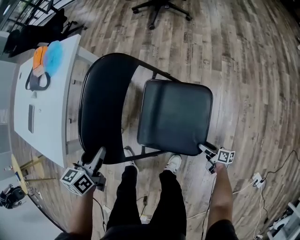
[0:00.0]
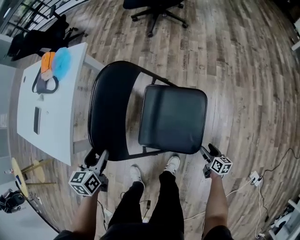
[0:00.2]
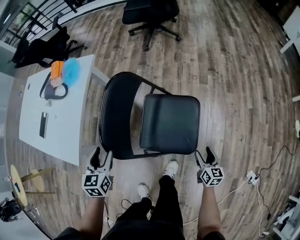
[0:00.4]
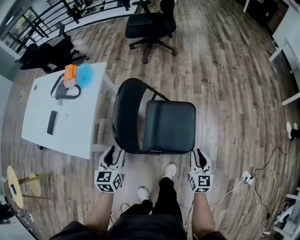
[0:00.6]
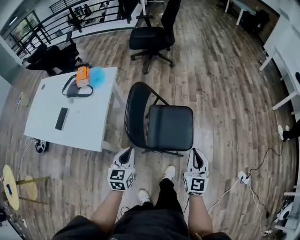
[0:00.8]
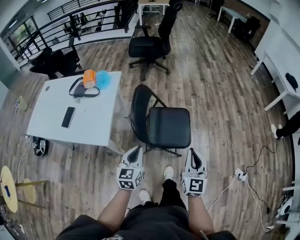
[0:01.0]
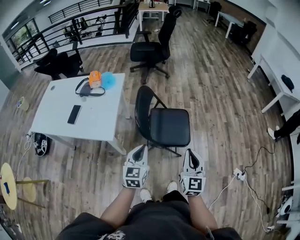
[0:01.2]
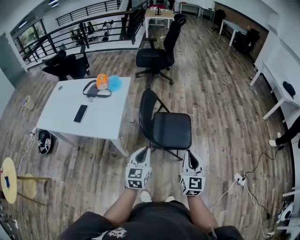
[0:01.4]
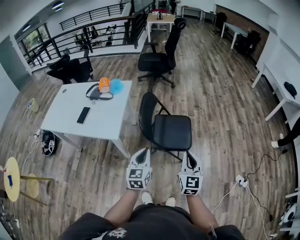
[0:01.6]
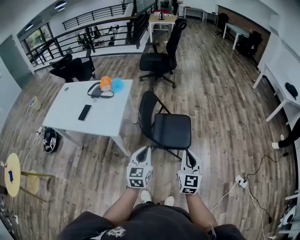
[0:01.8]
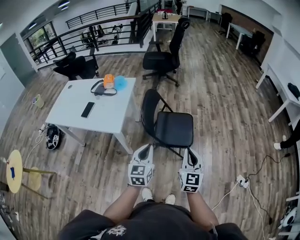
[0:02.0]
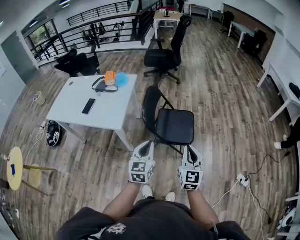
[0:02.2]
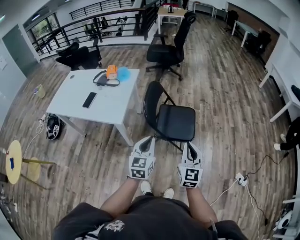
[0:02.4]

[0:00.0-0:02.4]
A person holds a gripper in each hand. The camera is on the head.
0:00.0 to 0:01.2: The right gripper goes some 60 cm upward, turns by roughly 90 degrees, and closes up; the left gripper moves some 40 cm, turns by roughly 30 degrees, and closes its fingers.
0:01.2 to 0:02.4: The right gripper goes roughly 5 cm backward. The left gripper shifts roughly 10 cm backward, upward and to the right.

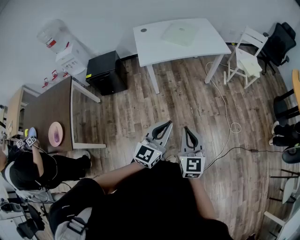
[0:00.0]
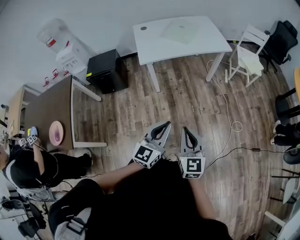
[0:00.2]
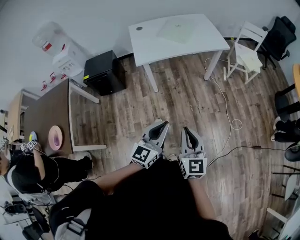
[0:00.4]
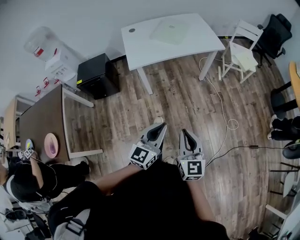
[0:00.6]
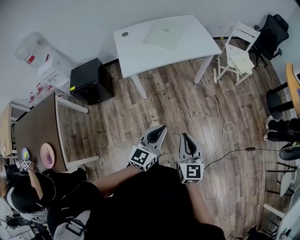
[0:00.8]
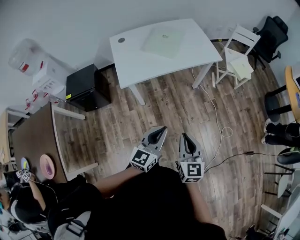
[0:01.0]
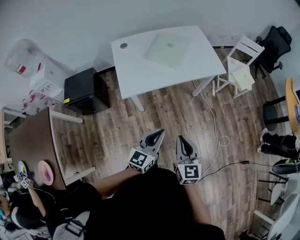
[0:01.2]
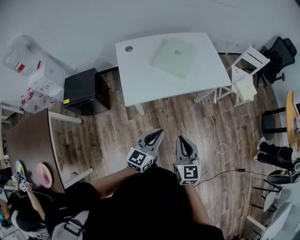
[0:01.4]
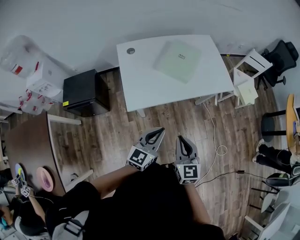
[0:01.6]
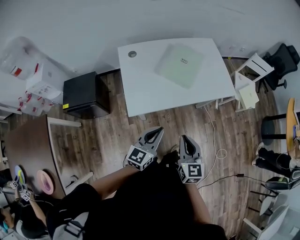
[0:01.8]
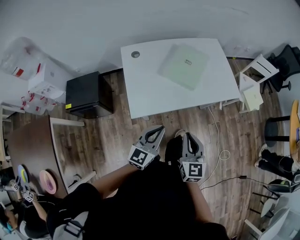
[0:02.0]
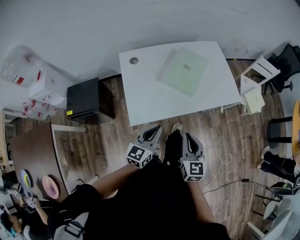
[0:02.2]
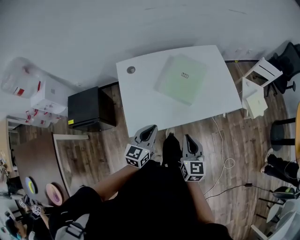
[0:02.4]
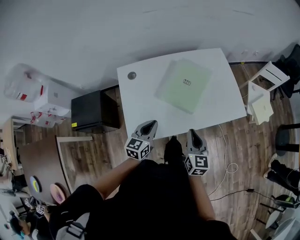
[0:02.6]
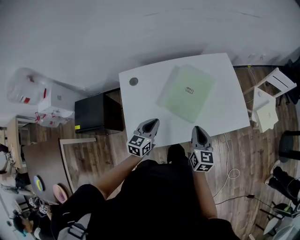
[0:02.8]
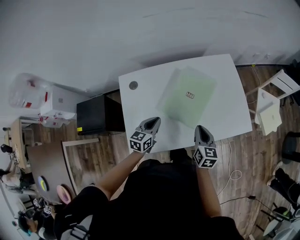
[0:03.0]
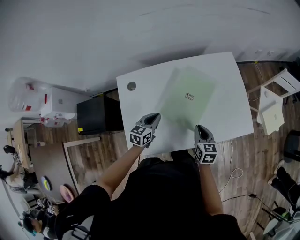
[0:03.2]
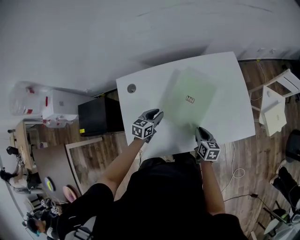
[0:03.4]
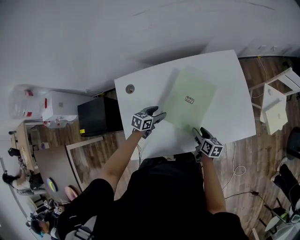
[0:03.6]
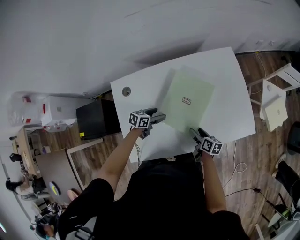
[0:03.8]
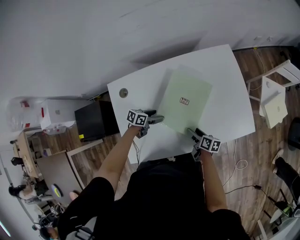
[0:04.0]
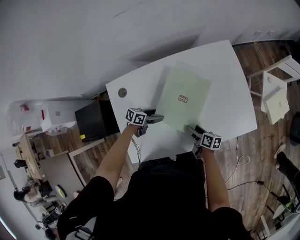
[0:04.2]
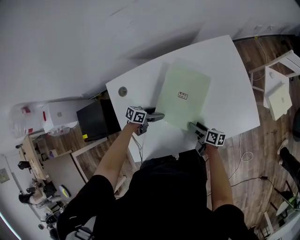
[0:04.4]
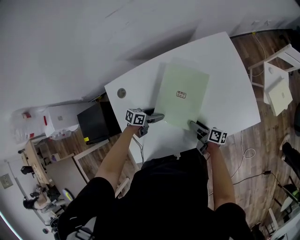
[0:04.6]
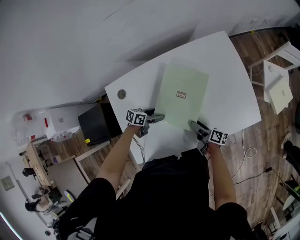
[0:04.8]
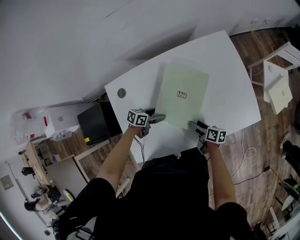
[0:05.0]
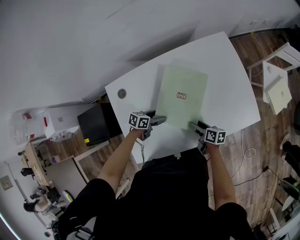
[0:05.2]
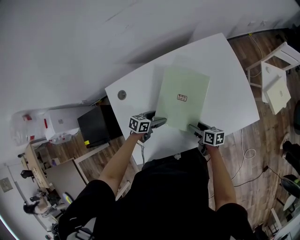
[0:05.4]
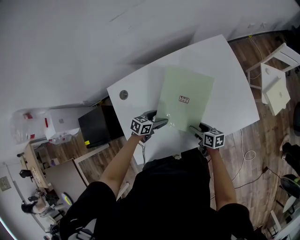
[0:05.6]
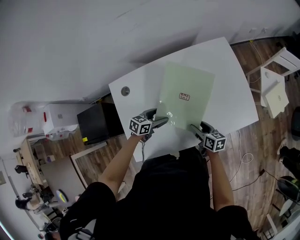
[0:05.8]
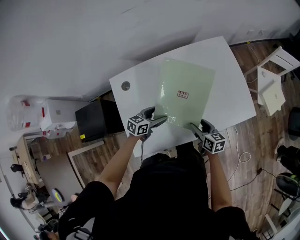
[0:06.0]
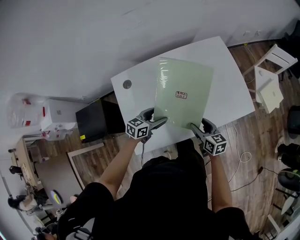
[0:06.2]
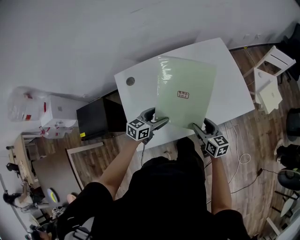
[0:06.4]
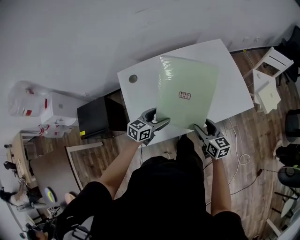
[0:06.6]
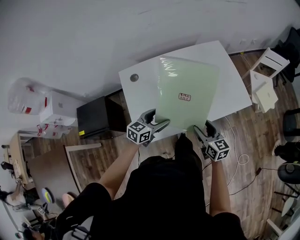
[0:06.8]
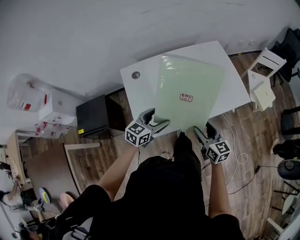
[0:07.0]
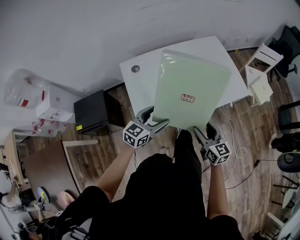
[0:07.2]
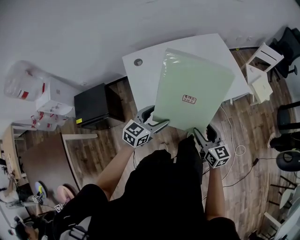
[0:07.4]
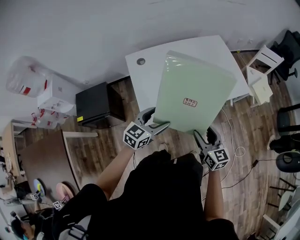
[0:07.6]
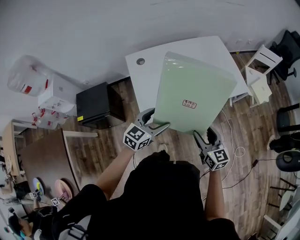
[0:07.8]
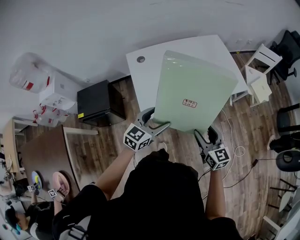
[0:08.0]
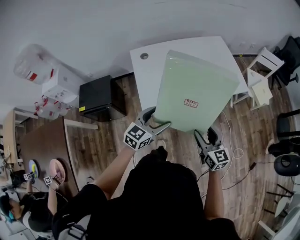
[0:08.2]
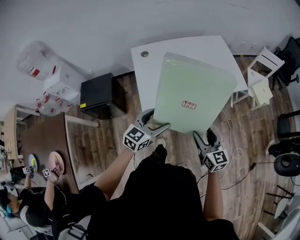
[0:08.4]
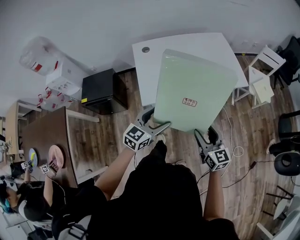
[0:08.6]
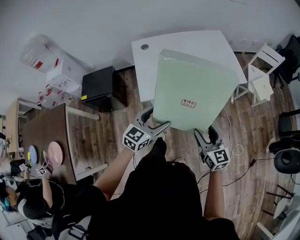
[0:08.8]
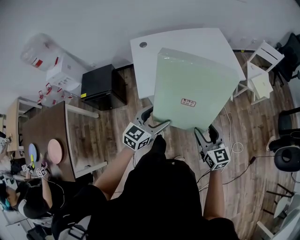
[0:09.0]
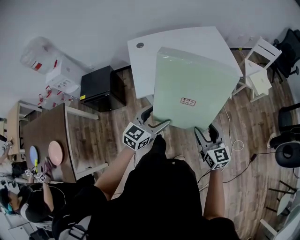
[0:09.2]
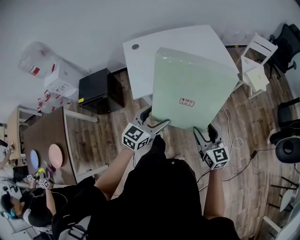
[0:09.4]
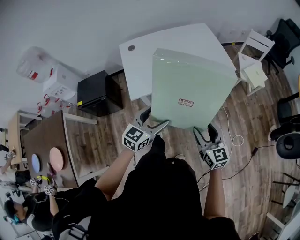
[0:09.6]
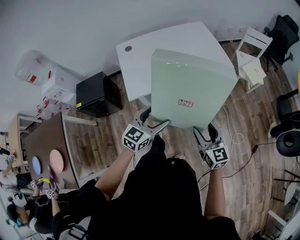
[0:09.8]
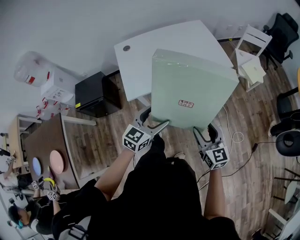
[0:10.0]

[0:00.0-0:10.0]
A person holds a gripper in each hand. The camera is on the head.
0:00.0 to 0:01.4: Both grippers travel together forward, some 35 cm.
0:01.4 to 0:02.8: Both grippers move forward, about 40 cm.
0:02.8 to 0:04.2: Both grippers move downward, approximately 20 cm. The right gripper rolls clockwise, seen from behind, by some 40 degrees, and opens up. Meanwhile the left gripper rotates approximately 50 degrees, and opens.
0:04.2 to 0:05.8: The two grippers go roughly 5 cm upward. The right gripper turns by some 20 degrees.
0:05.8 to 0:07.2: The grippers both shift backward and upward by roughly 30 cm. The right gripper swivels about 30 degrees. Meanwhile the left gripper turns by approximately 30 degrees.
0:07.2 to 0:08.6: Both grippers travel together backward, approximately 20 cm.
0:08.6 to 0:10.0: The left gripper shifts some 10 cm to the right. The right gripper shifts roughly 10 cm to the right and backward.

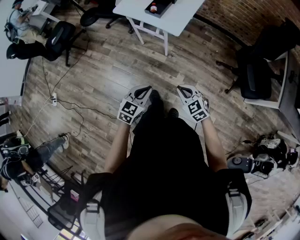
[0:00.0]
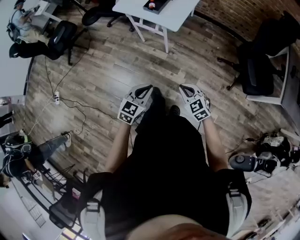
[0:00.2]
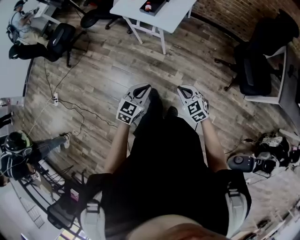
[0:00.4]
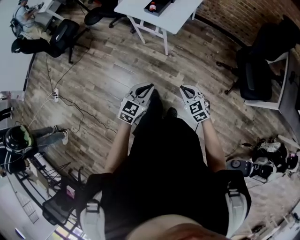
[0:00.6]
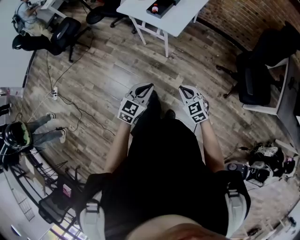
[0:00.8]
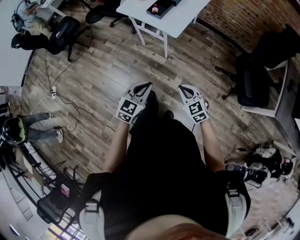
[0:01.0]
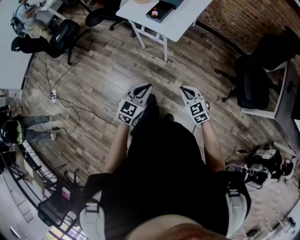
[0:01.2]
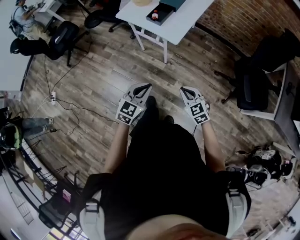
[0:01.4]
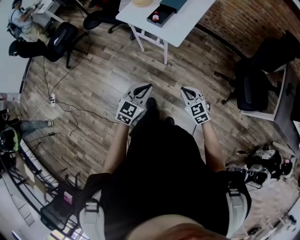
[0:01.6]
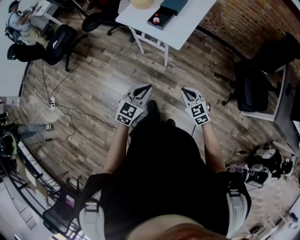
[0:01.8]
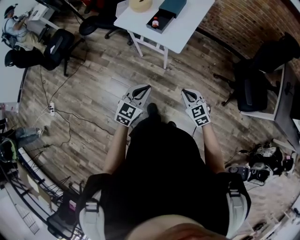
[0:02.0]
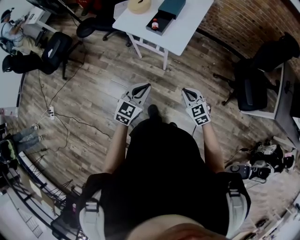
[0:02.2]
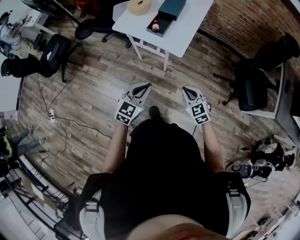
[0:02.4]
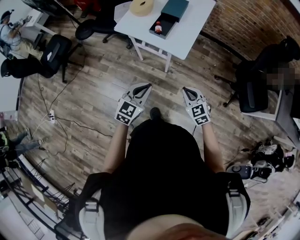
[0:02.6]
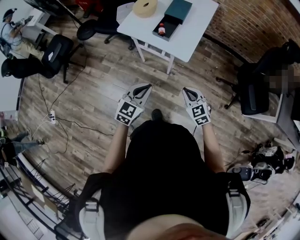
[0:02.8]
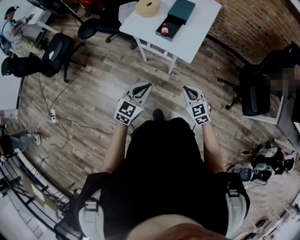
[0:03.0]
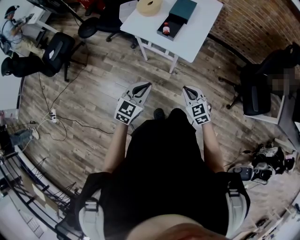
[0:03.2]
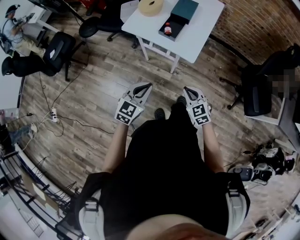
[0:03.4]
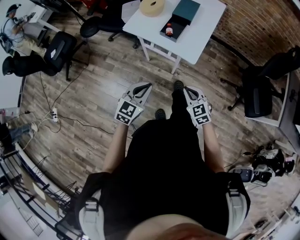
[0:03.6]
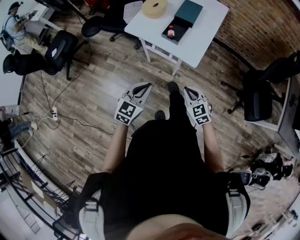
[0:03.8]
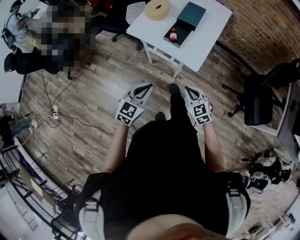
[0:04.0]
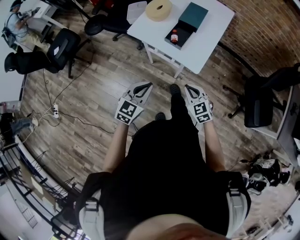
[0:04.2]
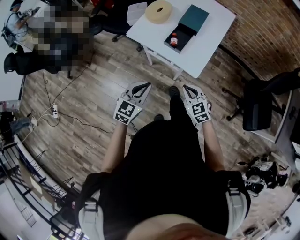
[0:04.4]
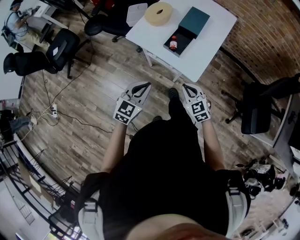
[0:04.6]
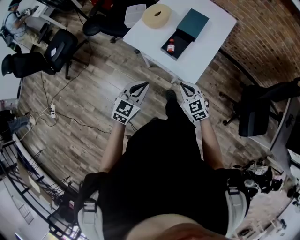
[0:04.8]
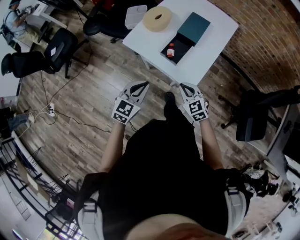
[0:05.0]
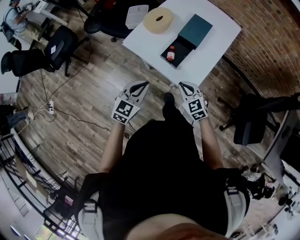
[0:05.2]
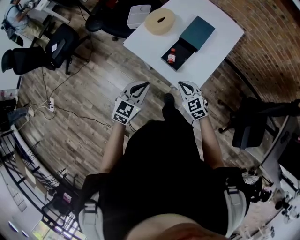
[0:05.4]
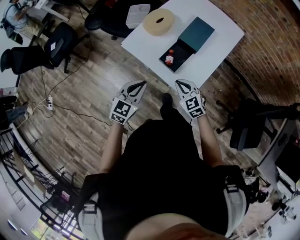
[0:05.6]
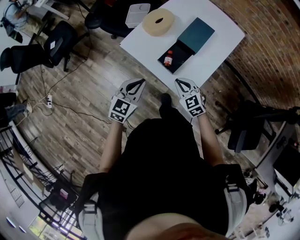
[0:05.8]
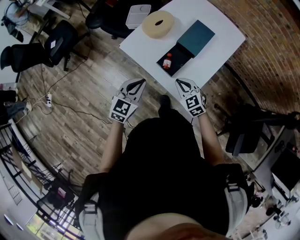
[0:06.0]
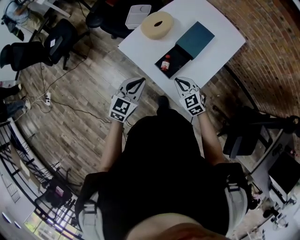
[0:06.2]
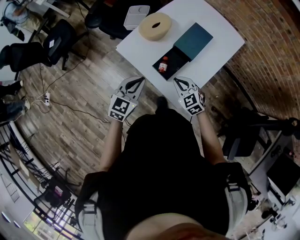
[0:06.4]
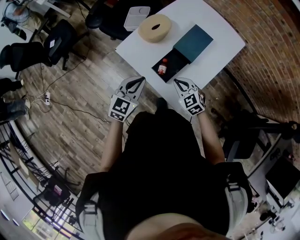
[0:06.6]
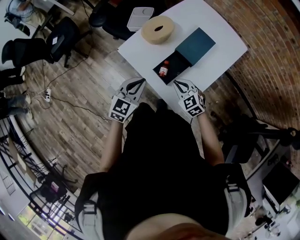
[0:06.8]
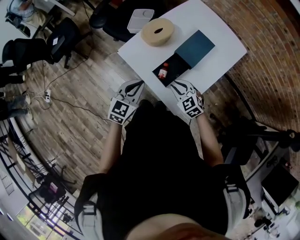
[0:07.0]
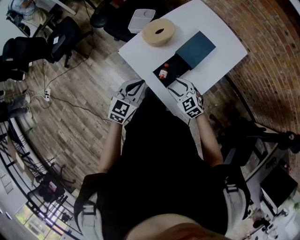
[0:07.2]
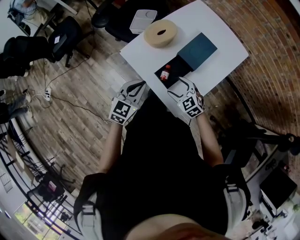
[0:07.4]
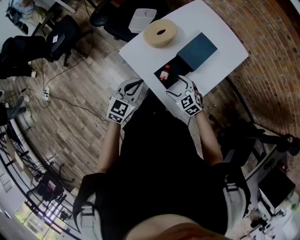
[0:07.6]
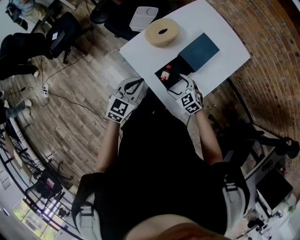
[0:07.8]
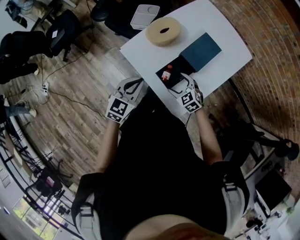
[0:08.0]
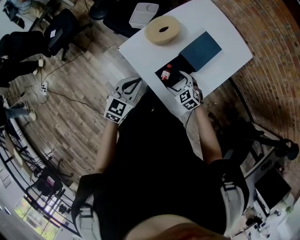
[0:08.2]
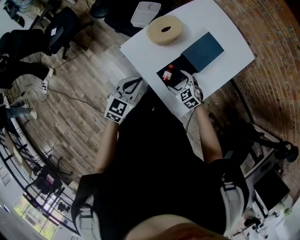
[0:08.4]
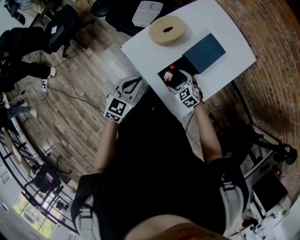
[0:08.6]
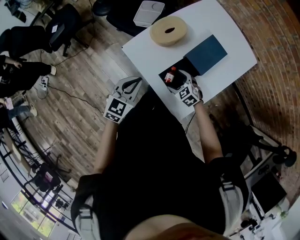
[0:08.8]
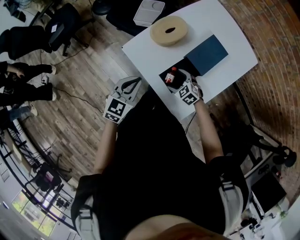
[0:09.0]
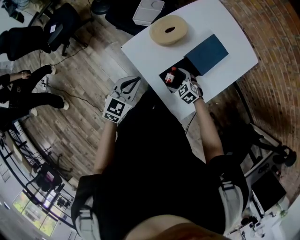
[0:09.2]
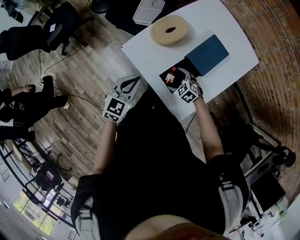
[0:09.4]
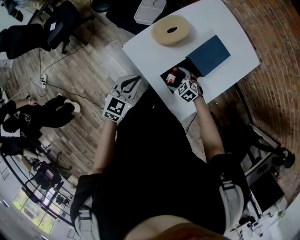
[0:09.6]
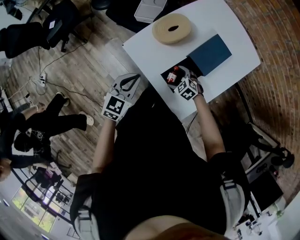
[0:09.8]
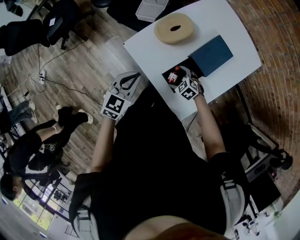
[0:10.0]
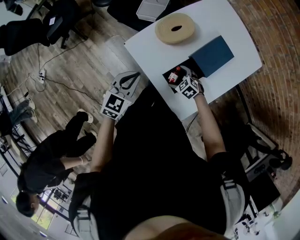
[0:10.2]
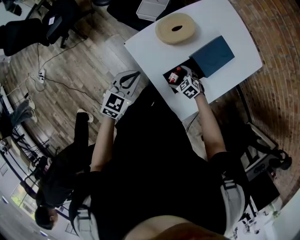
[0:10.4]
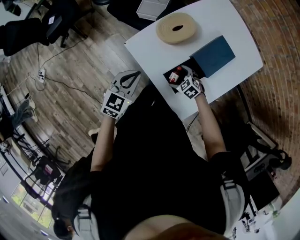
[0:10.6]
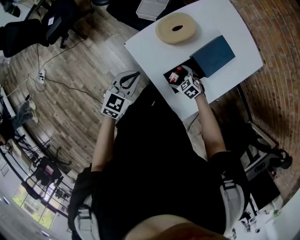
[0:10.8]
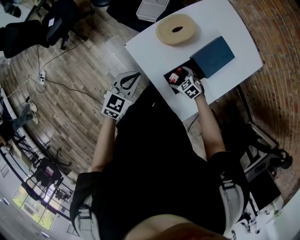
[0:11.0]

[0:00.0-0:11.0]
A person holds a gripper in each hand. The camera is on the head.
0:00.0 to 0:01.6: The right gripper is displaced forward by approximately 5 cm; the left gripper goes about 10 cm forward and upward.
0:01.6 to 0:03.2: Both grippers move to the left and forward, about 20 cm.
0:03.2 to 0:04.8: Both grippers move forward, roughly 20 cm.
0:04.8 to 0:06.2: The grippers both shift forward by roughly 15 cm.
0:06.2 to 0:07.8: The left gripper is displaced forward by about 5 cm, while the right gripper moves forward and downward, approximately 10 cm, and opens.
0:07.8 to 0:09.4: The left gripper ends up some 5 cm from where it was, while the right gripper is displaced downward and forward by roughly 10 cm.
0:09.4 to 0:11.0: The grippers make only small movements.
